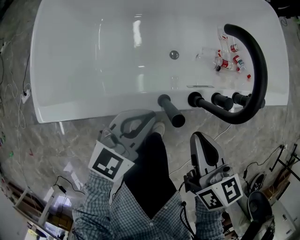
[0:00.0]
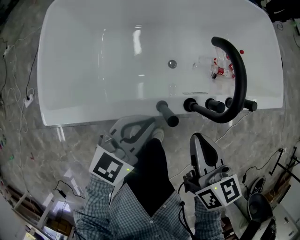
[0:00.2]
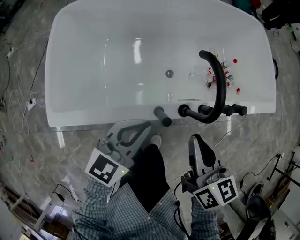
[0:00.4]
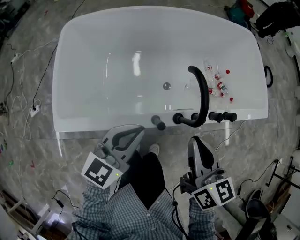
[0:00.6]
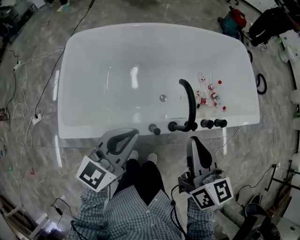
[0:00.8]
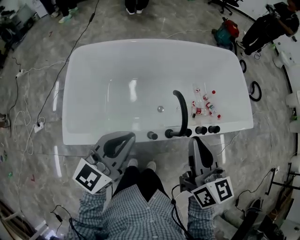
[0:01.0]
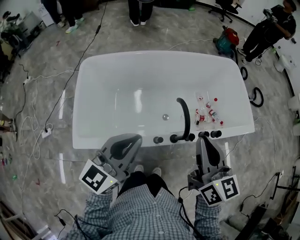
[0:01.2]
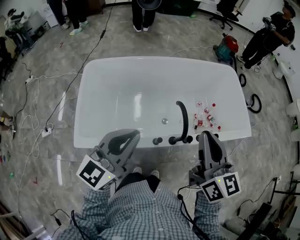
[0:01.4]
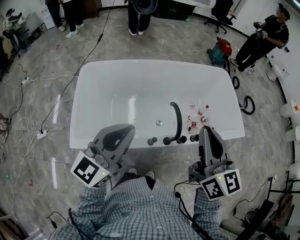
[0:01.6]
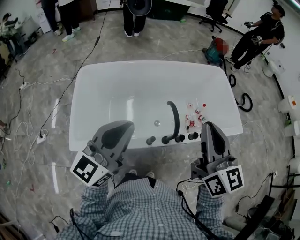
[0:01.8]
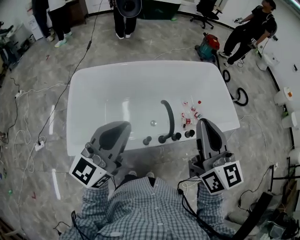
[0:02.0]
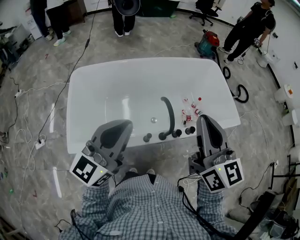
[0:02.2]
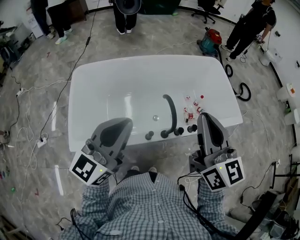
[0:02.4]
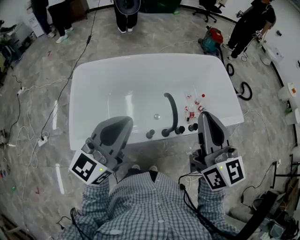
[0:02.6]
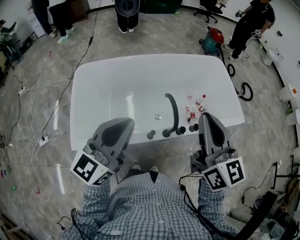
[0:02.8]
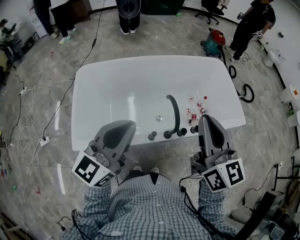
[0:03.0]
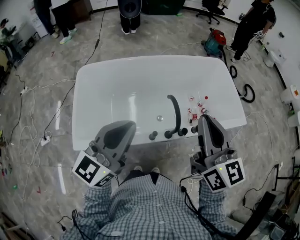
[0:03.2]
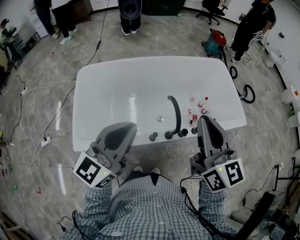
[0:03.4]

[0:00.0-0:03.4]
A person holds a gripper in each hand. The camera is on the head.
0:00.0 to 0:01.6: The two grippers go some 40 cm upward. The left gripper swivels some 30 degrees. Meanwhile the right gripper points its fingers about 30 degrees further upward.
0:01.6 to 0:03.4: The grippers move only a little.

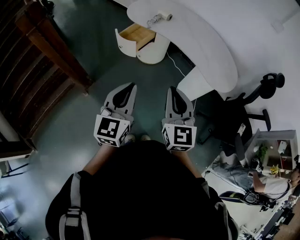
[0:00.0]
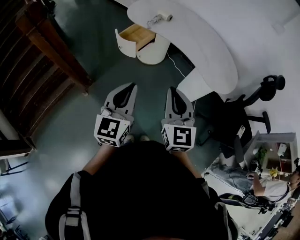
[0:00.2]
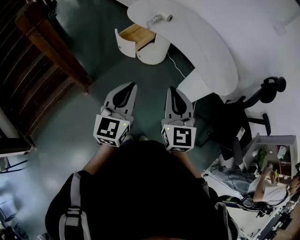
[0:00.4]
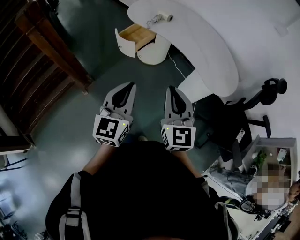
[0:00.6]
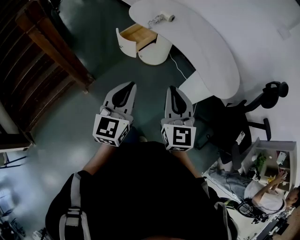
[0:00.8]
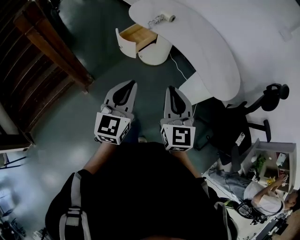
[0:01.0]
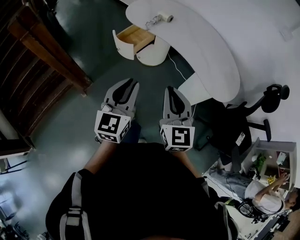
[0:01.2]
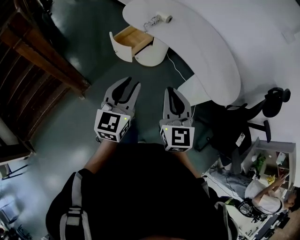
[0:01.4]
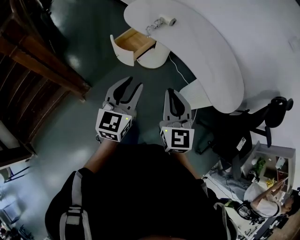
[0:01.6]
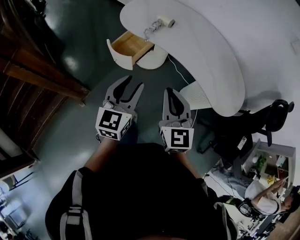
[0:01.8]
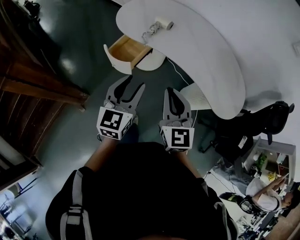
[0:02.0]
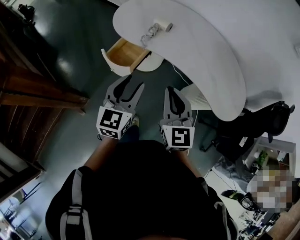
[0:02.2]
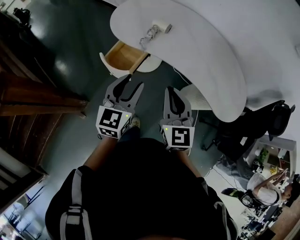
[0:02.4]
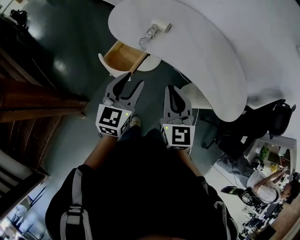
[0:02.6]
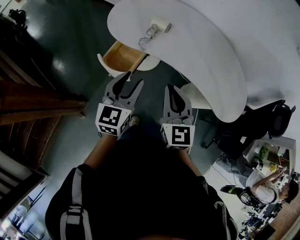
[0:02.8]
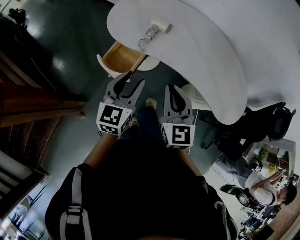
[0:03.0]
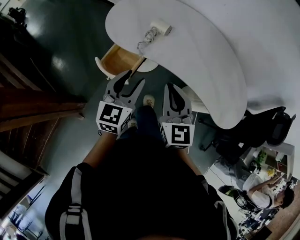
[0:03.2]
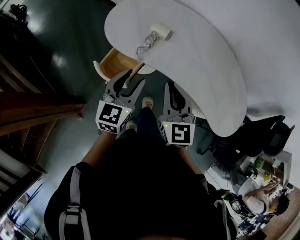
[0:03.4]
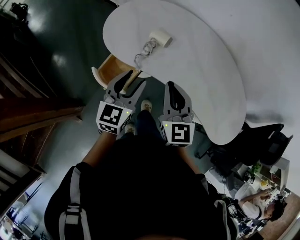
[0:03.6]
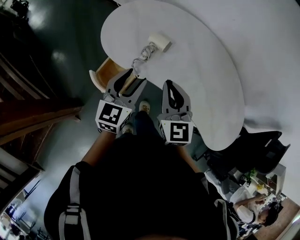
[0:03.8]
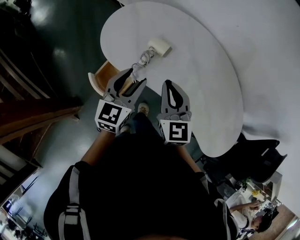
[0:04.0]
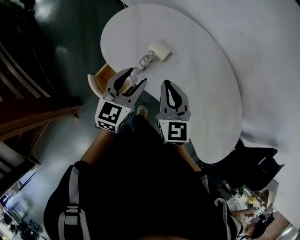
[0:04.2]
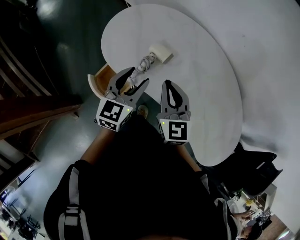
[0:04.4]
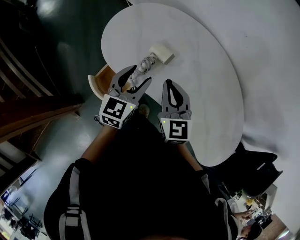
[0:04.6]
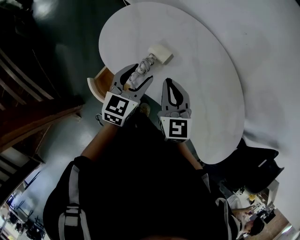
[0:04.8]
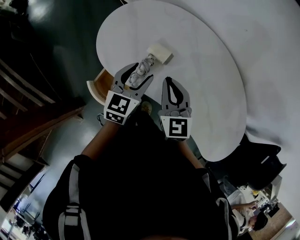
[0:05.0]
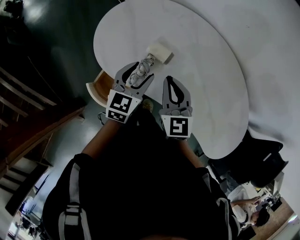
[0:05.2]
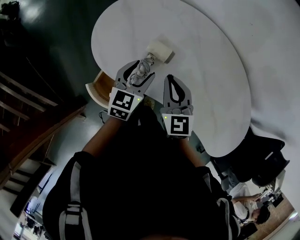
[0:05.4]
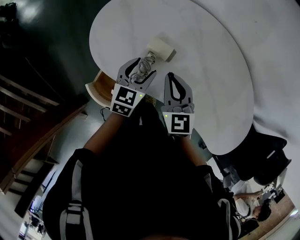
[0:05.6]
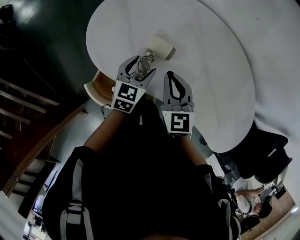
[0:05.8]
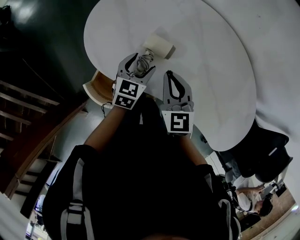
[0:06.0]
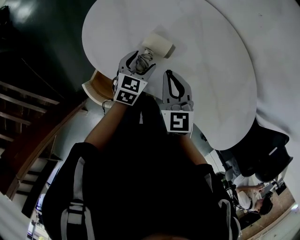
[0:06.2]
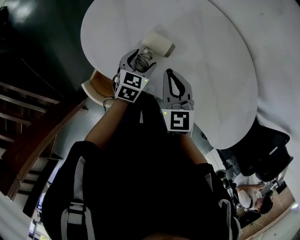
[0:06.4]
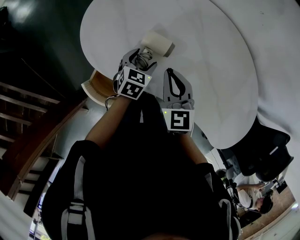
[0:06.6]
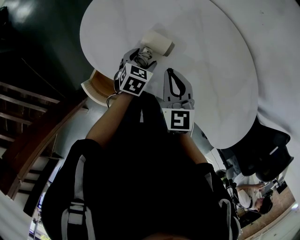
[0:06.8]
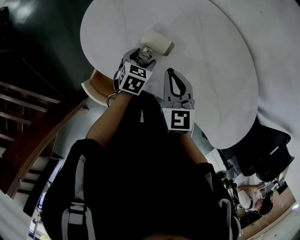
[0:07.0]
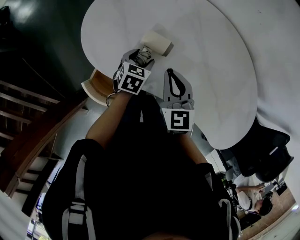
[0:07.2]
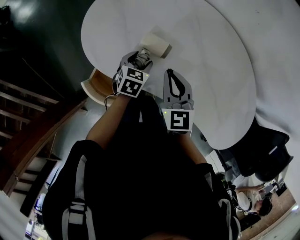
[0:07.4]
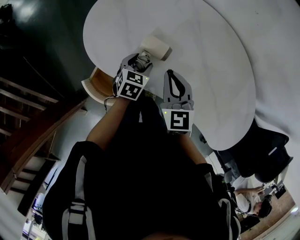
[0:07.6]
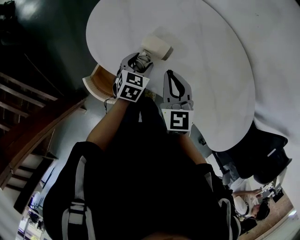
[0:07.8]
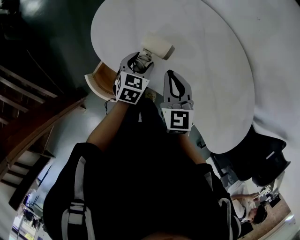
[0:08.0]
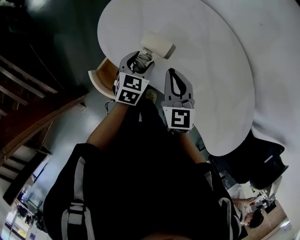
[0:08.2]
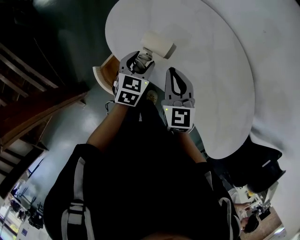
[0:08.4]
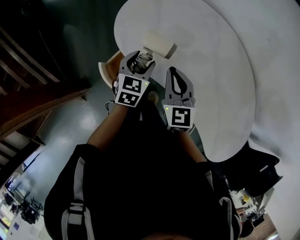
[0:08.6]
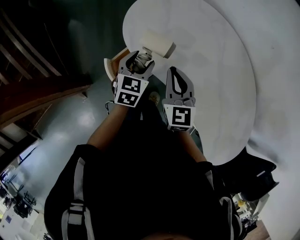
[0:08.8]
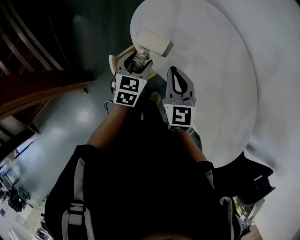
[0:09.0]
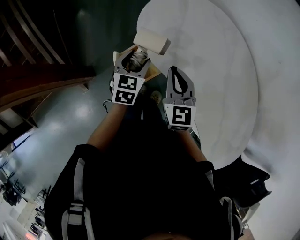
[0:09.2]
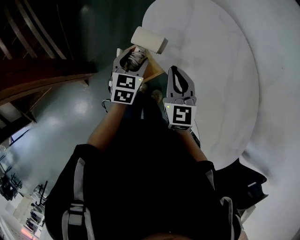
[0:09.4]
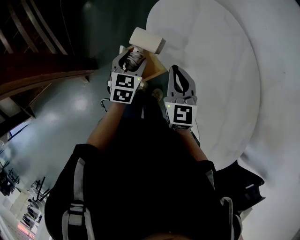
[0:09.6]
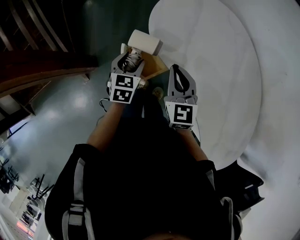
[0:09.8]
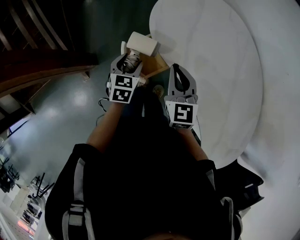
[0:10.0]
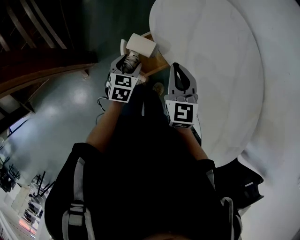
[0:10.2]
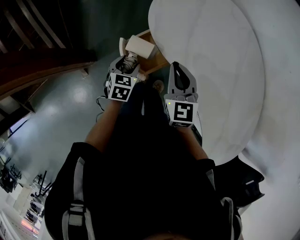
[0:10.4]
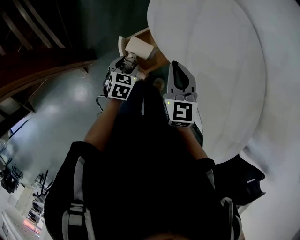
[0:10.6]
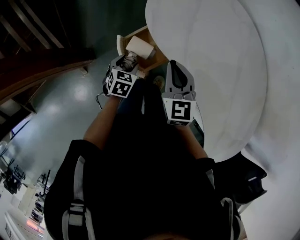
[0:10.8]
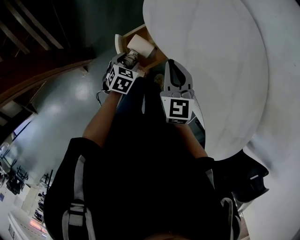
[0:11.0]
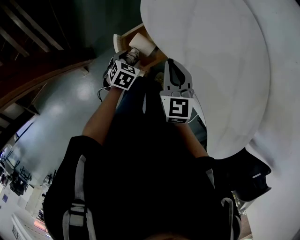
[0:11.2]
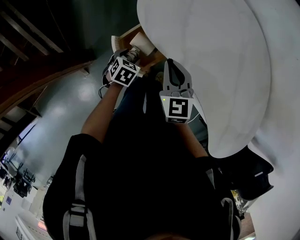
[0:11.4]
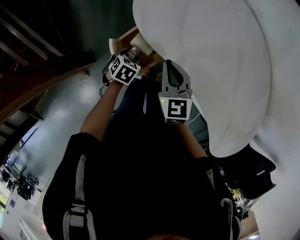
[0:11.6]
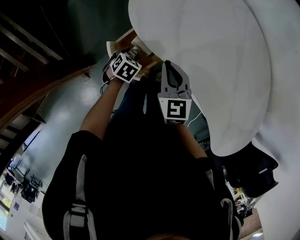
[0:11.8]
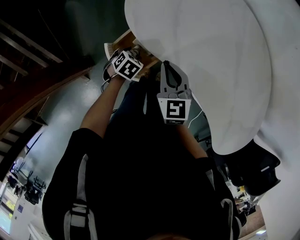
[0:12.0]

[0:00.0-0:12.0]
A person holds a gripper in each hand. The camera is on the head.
0:00.0 to 0:01.6: Both grippers travel together forward, some 15 cm. The left gripper opens its fingers.
0:01.6 to 0:03.0: The two grippers go some 20 cm forward.
0:03.0 to 0:04.4: The two grippers go approximately 25 cm forward.
0:04.4 to 0:06.0: The right gripper goes roughly 10 cm downward and forward. The left gripper travels downward and forward by approximately 20 cm, and swivels approximately 20 degrees.
0:06.0 to 0:07.6: There are only small adjustments of the grippers.
0:07.6 to 0:09.0: The right gripper goes about 15 cm to the left. Meanwhile the left gripper shifts some 20 cm to the left, upward and backward, and swivels approximately 30 degrees.
0:09.0 to 0:10.4: The left gripper goes about 15 cm downward, to the left and backward; the right gripper goes about 5 cm to the left.
0:10.4 to 0:12.0: The right gripper moves downward, roughly 5 cm; the left gripper heads downward, covering some 10 cm, and changes its angle by roughly 40 degrees.

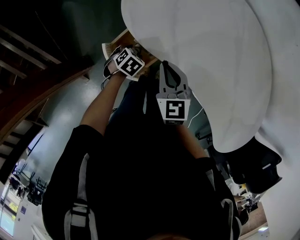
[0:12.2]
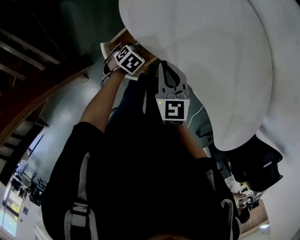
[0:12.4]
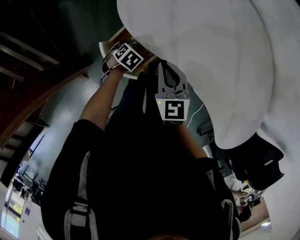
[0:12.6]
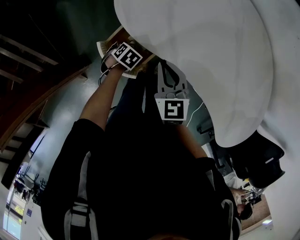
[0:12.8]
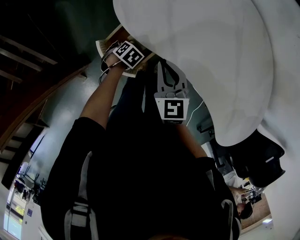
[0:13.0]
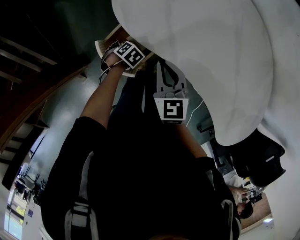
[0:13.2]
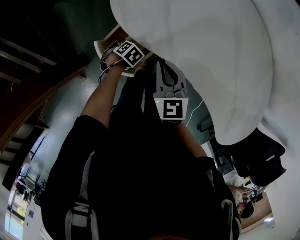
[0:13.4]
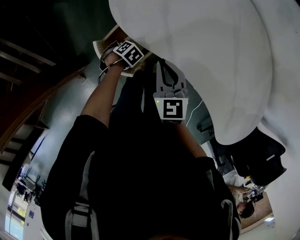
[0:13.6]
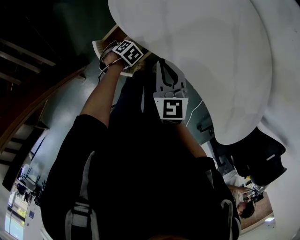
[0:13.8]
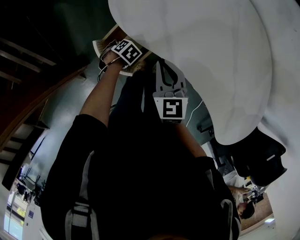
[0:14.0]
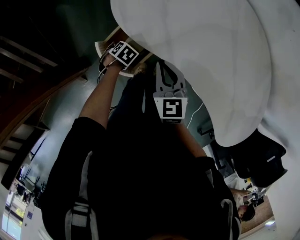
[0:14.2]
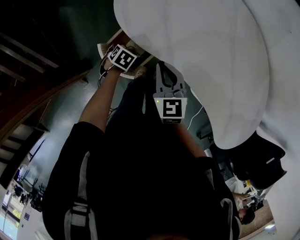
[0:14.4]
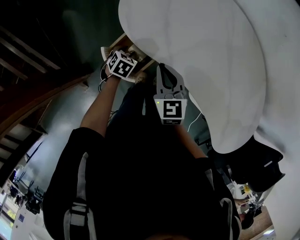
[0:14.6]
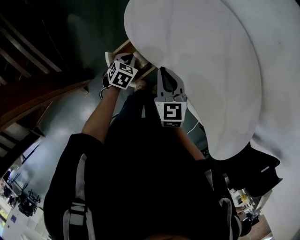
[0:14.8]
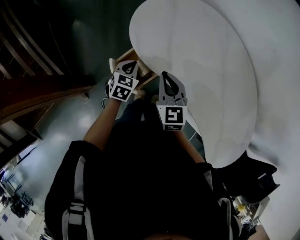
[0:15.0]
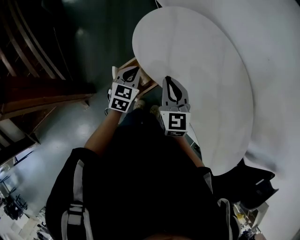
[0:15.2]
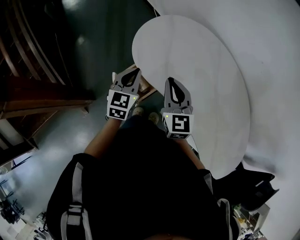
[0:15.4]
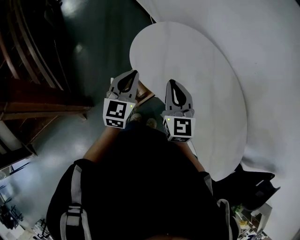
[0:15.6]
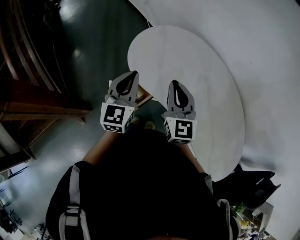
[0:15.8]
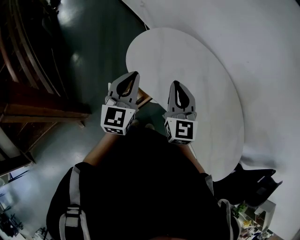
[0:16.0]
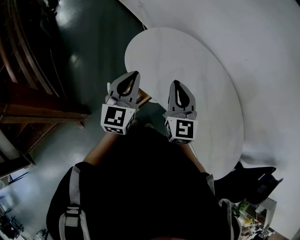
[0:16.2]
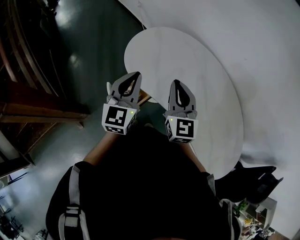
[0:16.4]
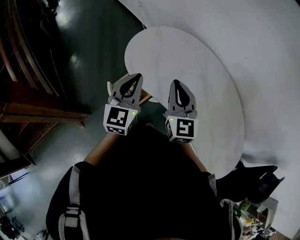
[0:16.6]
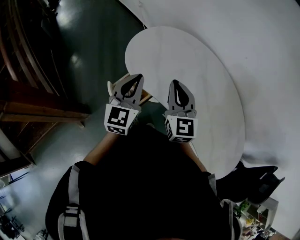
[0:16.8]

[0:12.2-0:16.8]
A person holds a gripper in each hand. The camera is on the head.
0:12.2 to 0:13.8: The left gripper shifts some 5 cm downward.
0:13.8 to 0:15.2: The right gripper heads upward, covering roughly 15 cm, and changes its angle by some 20 degrees. The left gripper travels upward by about 30 cm, angles its fingers upward, by some 50 degrees, and closes its fingers.
0:15.2 to 0:16.8: The right gripper moves upward and to the right, approximately 10 cm. Meanwhile the left gripper moves upward, roughly 20 cm, and turns by about 30 degrees.

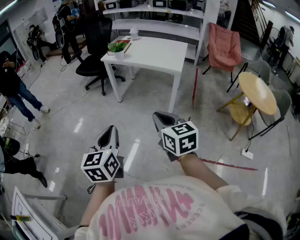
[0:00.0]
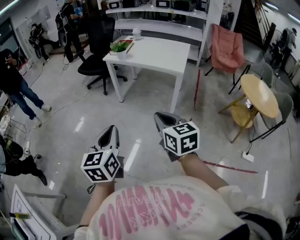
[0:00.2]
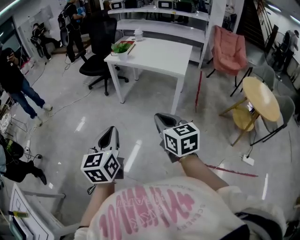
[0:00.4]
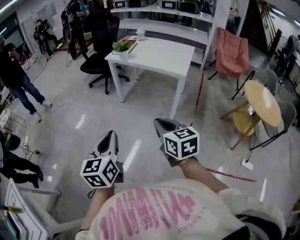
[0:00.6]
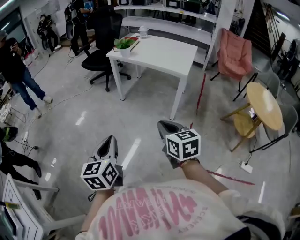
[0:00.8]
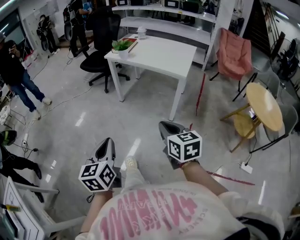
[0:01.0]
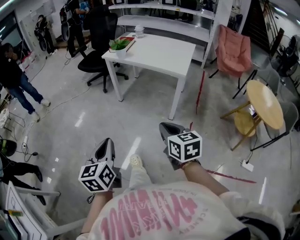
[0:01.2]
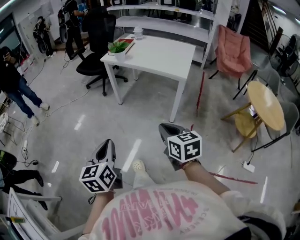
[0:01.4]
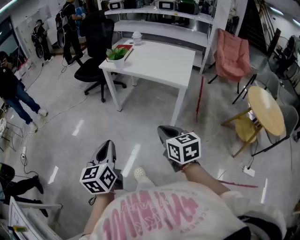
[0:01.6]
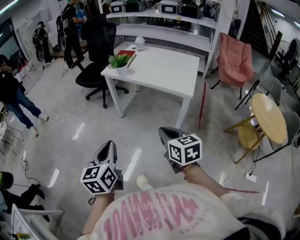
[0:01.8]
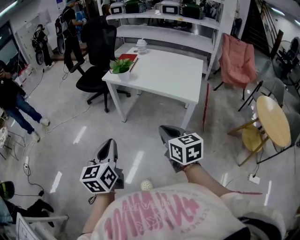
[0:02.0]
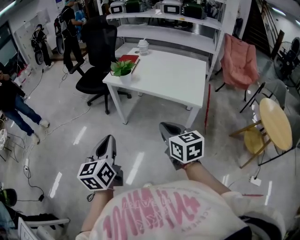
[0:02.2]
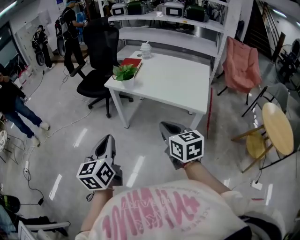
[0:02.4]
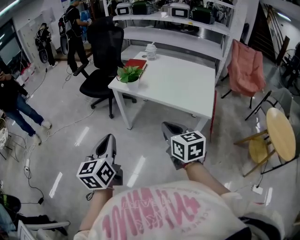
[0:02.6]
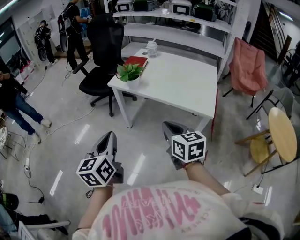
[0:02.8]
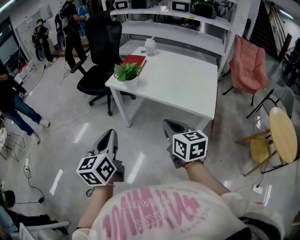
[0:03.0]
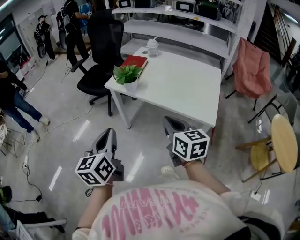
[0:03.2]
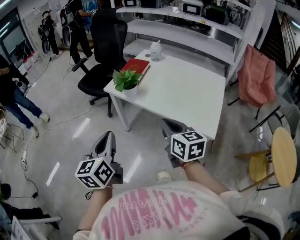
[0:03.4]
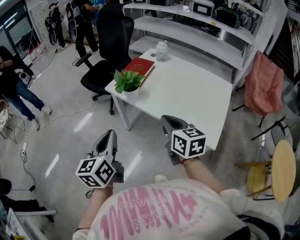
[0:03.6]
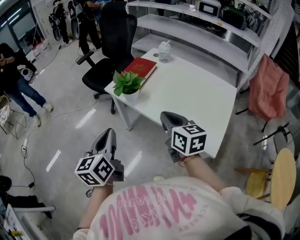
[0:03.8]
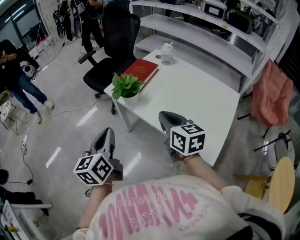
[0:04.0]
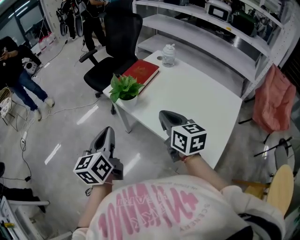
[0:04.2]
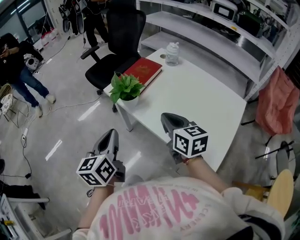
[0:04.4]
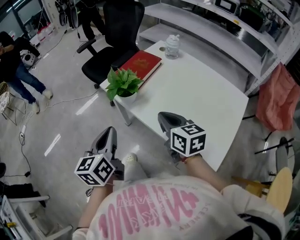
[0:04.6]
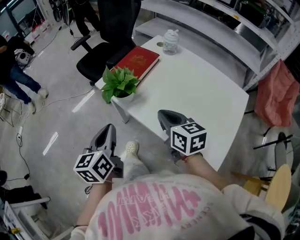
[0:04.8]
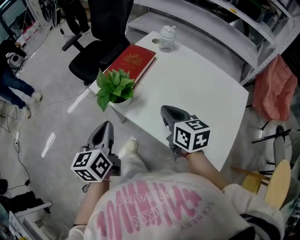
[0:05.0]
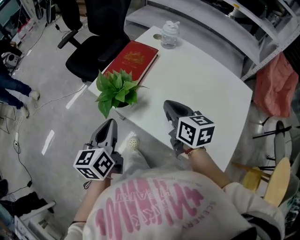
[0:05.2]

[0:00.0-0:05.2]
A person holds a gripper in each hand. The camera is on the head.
0:00.0 to 0:01.8: Both grippers travel together forward, approximately 20 cm.
0:01.8 to 0:03.4: Both grippers move forward, roughly 30 cm.
0:03.4 to 0:05.2: The right gripper goes roughly 25 cm forward; the left gripper is displaced forward and downward by approximately 25 cm.
